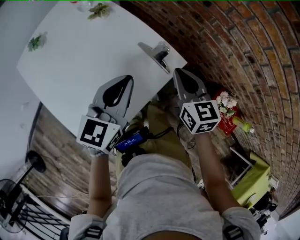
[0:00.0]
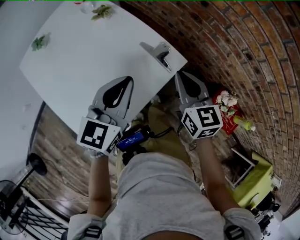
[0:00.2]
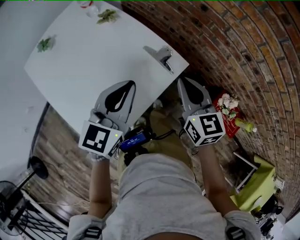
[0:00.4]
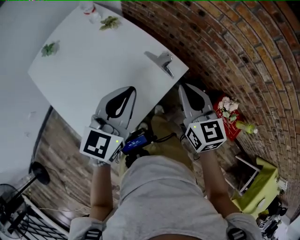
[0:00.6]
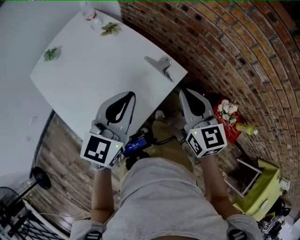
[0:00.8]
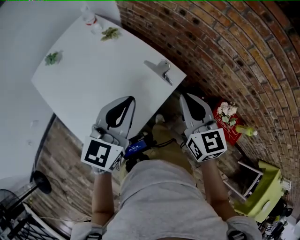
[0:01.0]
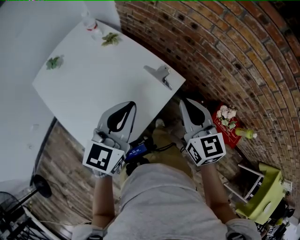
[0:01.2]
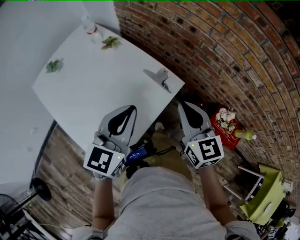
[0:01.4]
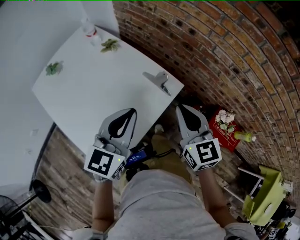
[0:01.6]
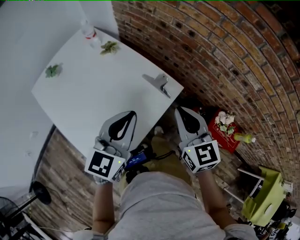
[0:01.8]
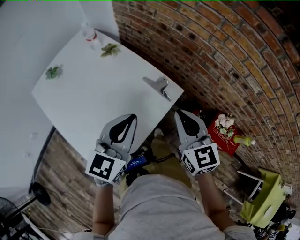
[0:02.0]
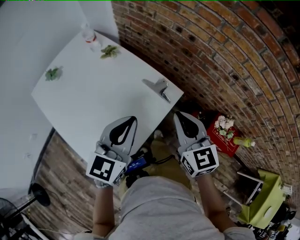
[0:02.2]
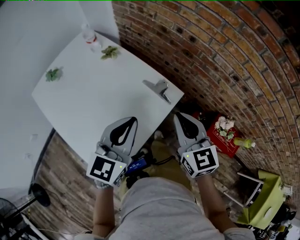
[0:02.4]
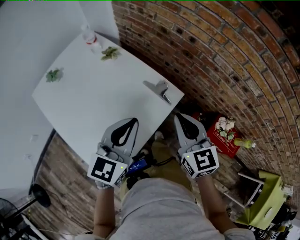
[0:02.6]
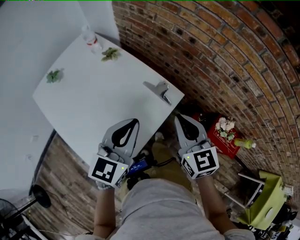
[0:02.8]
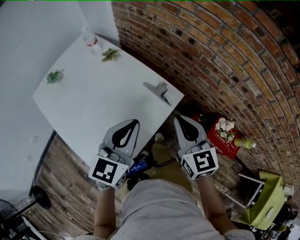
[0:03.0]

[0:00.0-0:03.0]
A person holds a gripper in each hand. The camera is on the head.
0:00.0 to 0:01.6: The two grippers go roughly 10 cm backward and upward.
0:01.6 to 0:03.0: Neither gripper changes place.

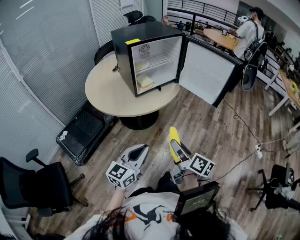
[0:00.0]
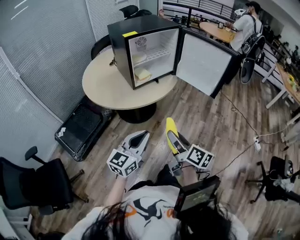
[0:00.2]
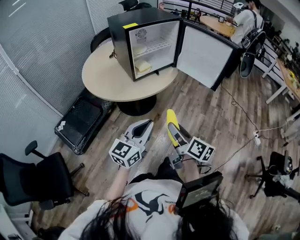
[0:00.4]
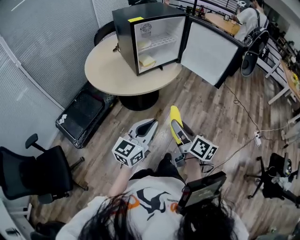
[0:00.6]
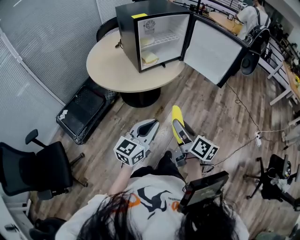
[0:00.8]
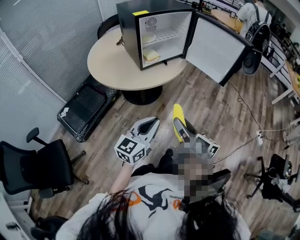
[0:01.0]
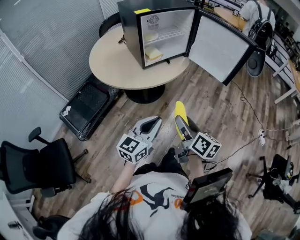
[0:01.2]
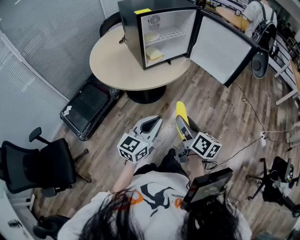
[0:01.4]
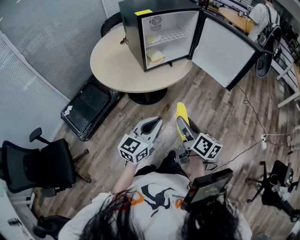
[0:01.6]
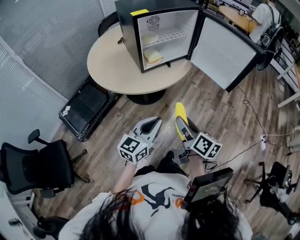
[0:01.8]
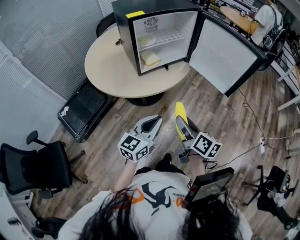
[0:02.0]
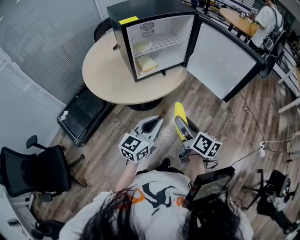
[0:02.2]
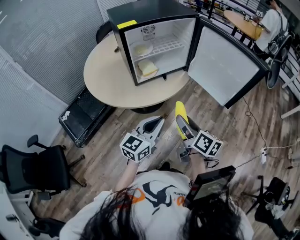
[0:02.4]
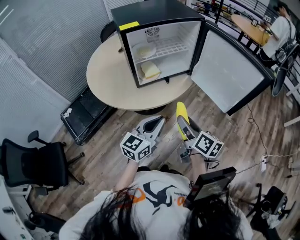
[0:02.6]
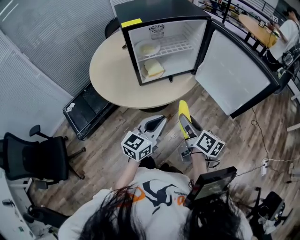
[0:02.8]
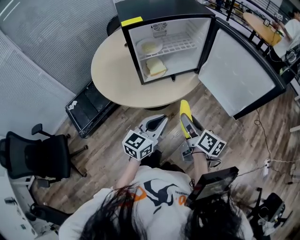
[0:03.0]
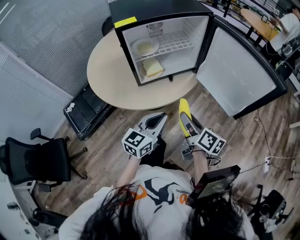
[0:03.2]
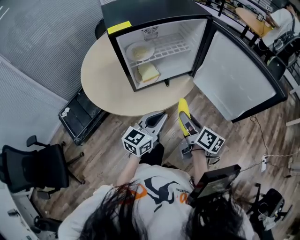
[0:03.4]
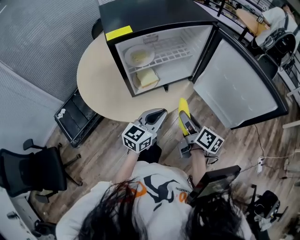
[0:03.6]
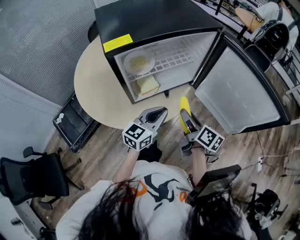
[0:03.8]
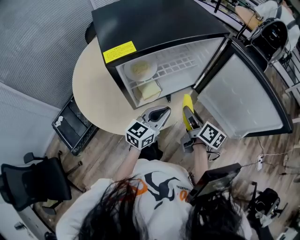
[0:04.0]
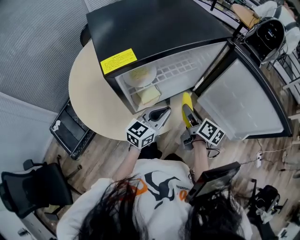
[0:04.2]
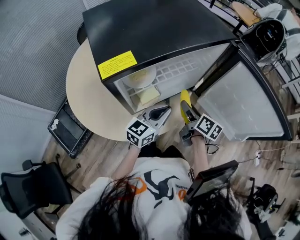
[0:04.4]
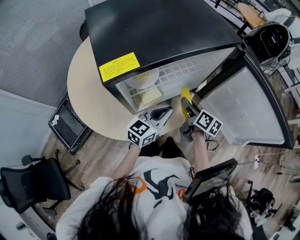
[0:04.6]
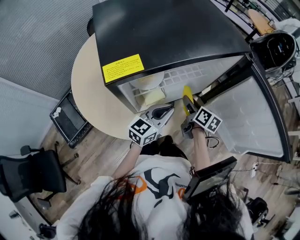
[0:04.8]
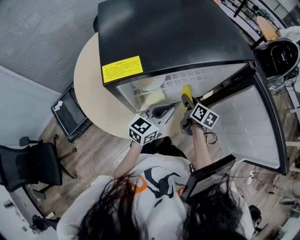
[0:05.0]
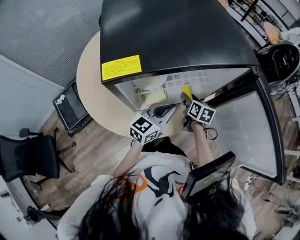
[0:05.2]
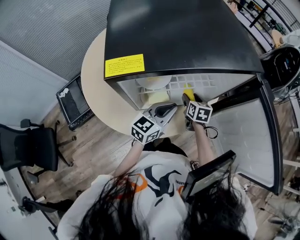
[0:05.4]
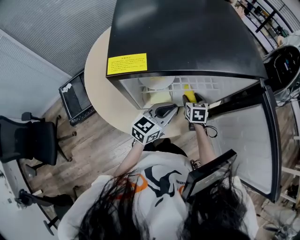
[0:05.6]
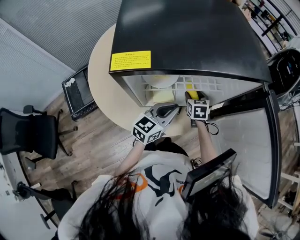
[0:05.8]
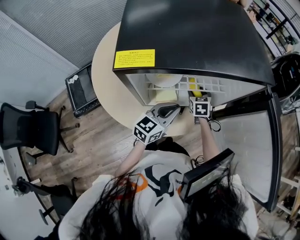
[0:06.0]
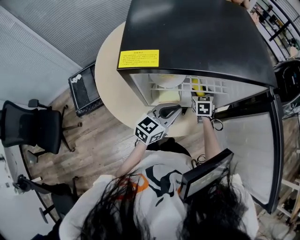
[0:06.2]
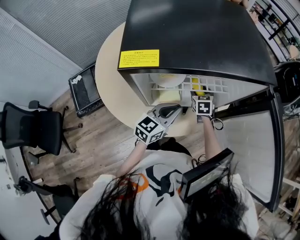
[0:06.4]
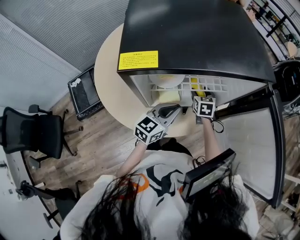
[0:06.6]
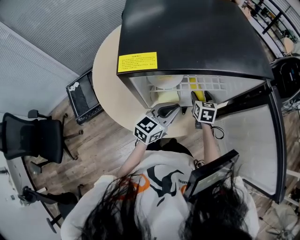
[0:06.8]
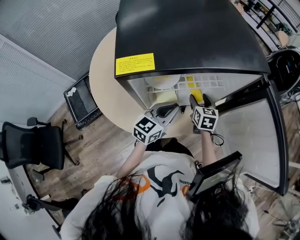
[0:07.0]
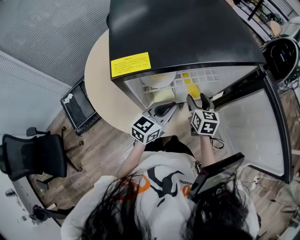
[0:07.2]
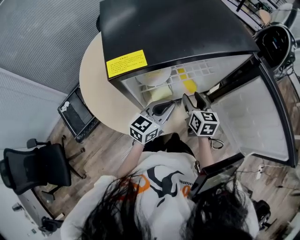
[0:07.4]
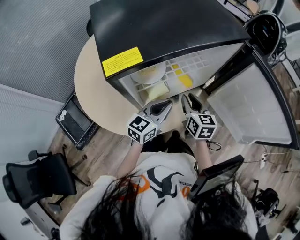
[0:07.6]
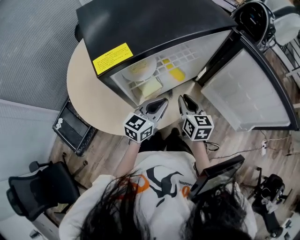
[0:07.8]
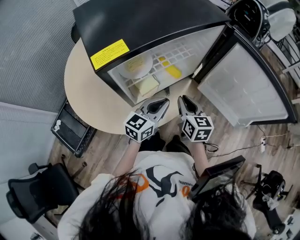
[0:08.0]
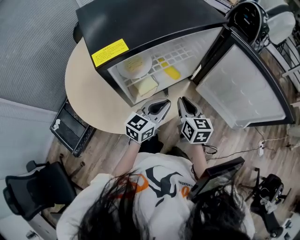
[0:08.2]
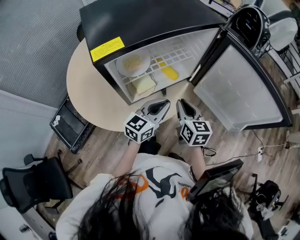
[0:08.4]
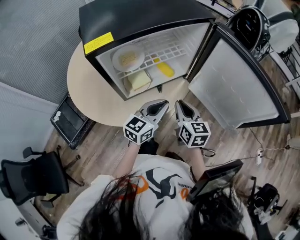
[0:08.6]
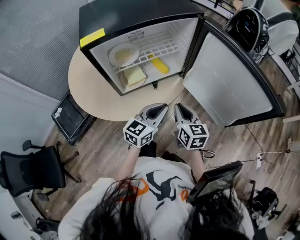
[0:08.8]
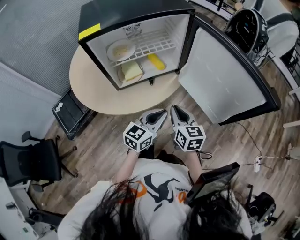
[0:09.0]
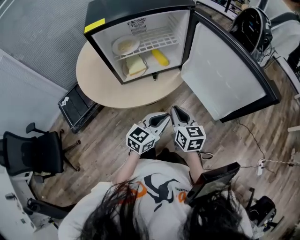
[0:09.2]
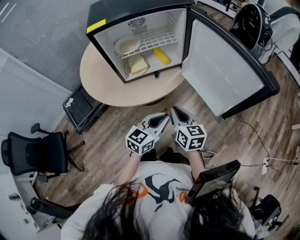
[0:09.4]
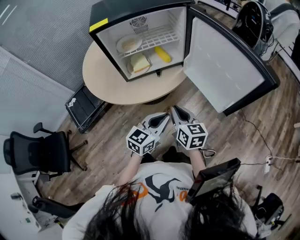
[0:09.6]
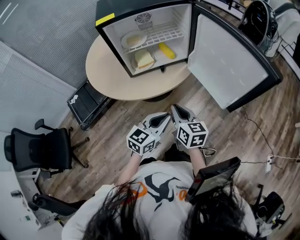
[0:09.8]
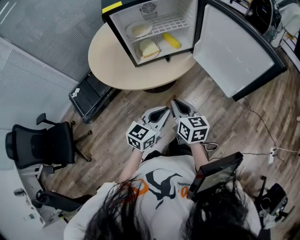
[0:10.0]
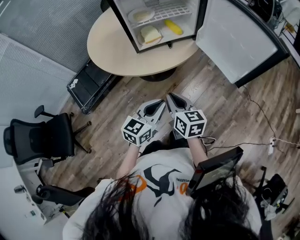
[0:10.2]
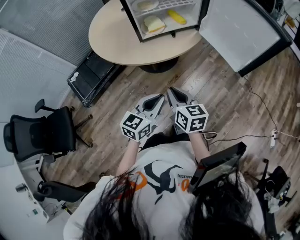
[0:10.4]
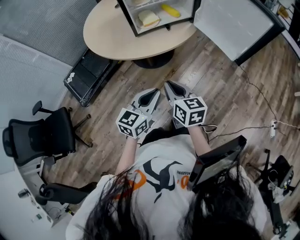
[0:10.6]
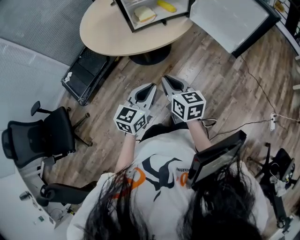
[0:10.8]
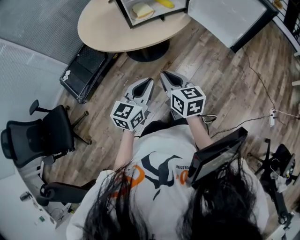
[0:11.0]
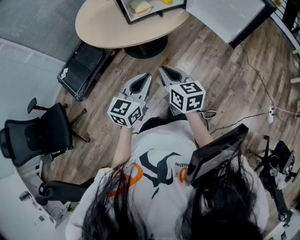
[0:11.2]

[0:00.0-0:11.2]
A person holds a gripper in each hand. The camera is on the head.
0:00.0 to 0:01.6: The left gripper goes about 5 cm forward. The right gripper changes place by roughly 5 cm.
0:01.6 to 0:03.2: Both grippers travel together forward, approximately 20 cm.
0:03.2 to 0:04.8: The grippers both shift forward by some 25 cm.
0:04.8 to 0:06.4: The right gripper moves forward, downward and to the left, roughly 15 cm, and rotates around the line of its fingers by some 60 degrees, counterclockwise from behind.
0:06.4 to 0:08.0: The left gripper is displaced backward by roughly 5 cm, and rotates roughly 20 degrees, while the right gripper is displaced backward and upward by about 25 cm, changes its angle by about 40 degrees, and closes.
0:08.0 to 0:09.6: The grippers both shift backward and to the right by roughly 20 cm. The right gripper turns by approximately 20 degrees.
0:09.6 to 0:11.2: Both grippers travel together backward and to the left, about 20 cm.

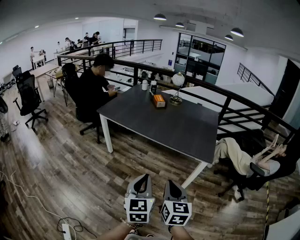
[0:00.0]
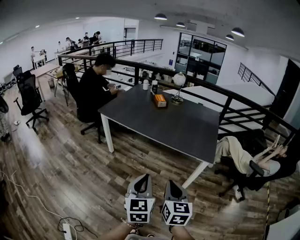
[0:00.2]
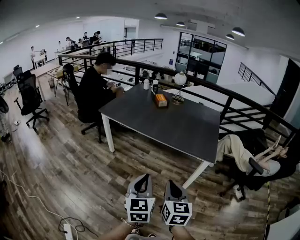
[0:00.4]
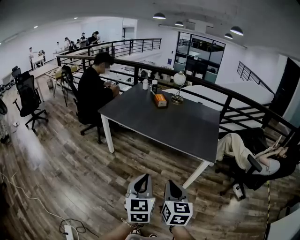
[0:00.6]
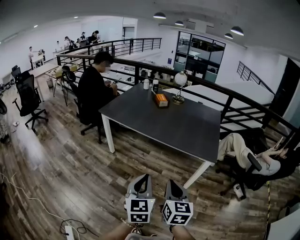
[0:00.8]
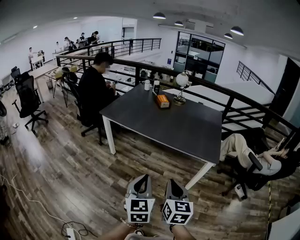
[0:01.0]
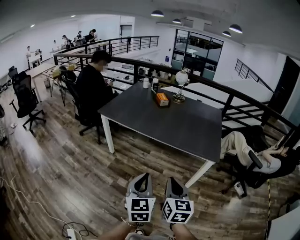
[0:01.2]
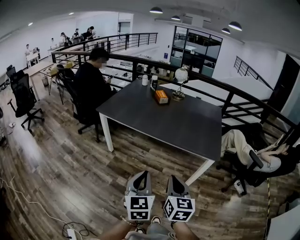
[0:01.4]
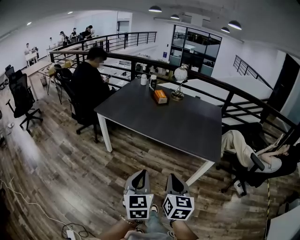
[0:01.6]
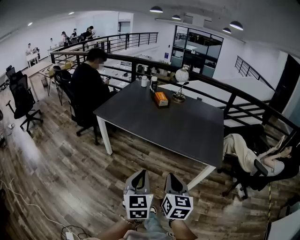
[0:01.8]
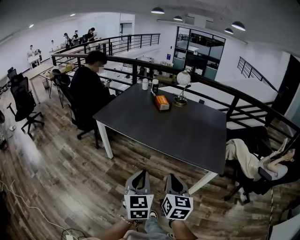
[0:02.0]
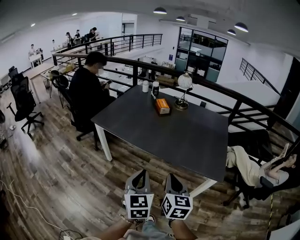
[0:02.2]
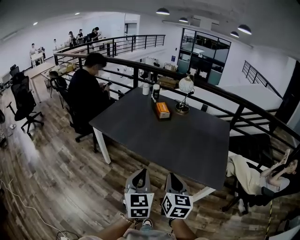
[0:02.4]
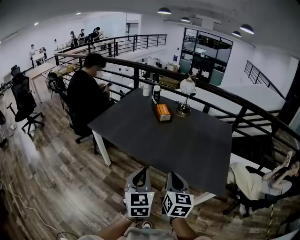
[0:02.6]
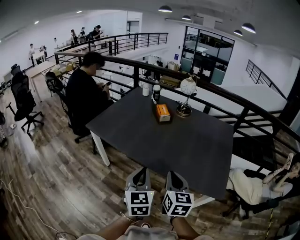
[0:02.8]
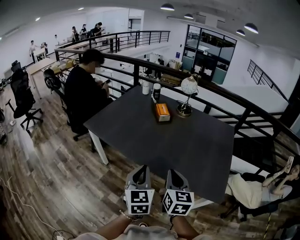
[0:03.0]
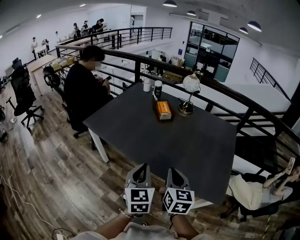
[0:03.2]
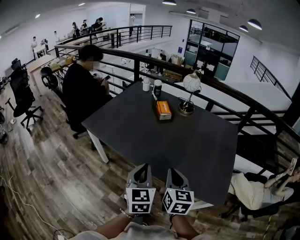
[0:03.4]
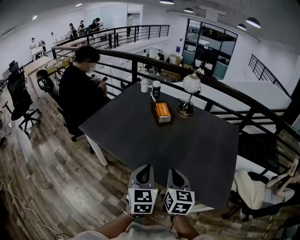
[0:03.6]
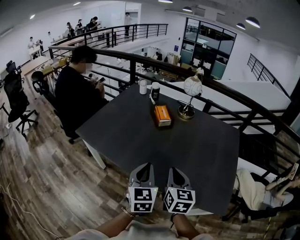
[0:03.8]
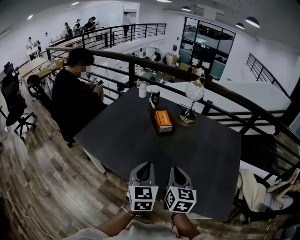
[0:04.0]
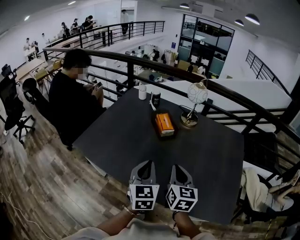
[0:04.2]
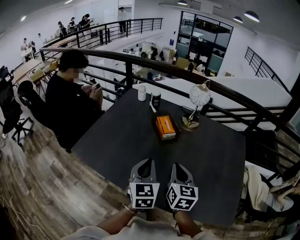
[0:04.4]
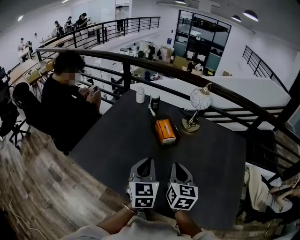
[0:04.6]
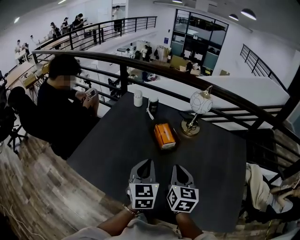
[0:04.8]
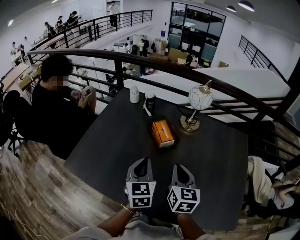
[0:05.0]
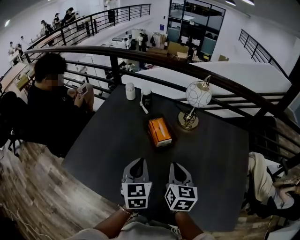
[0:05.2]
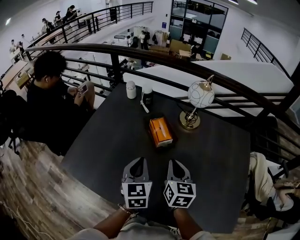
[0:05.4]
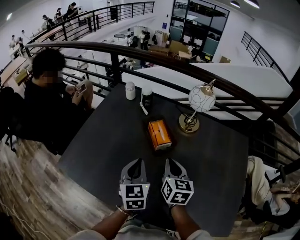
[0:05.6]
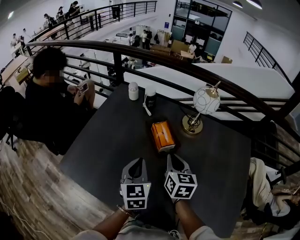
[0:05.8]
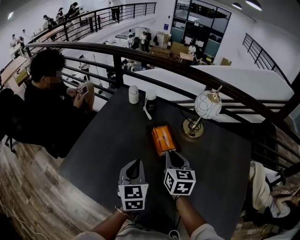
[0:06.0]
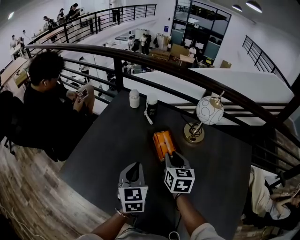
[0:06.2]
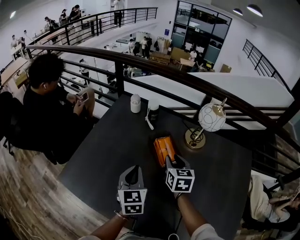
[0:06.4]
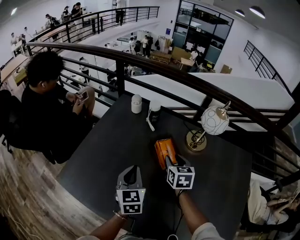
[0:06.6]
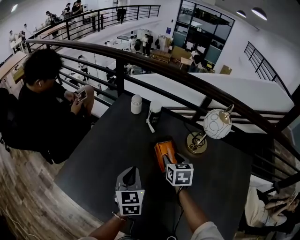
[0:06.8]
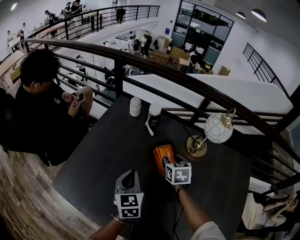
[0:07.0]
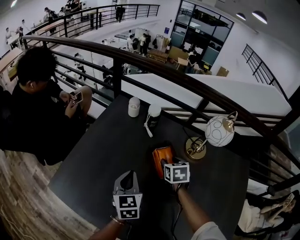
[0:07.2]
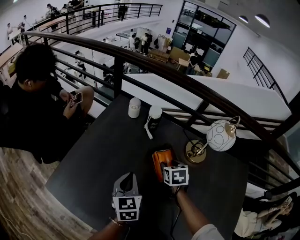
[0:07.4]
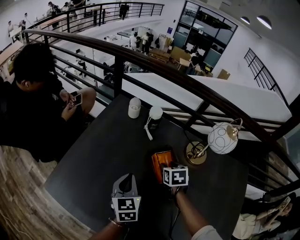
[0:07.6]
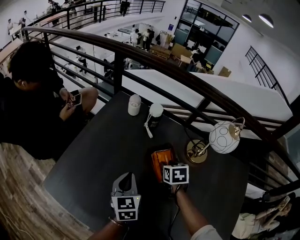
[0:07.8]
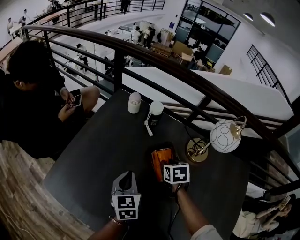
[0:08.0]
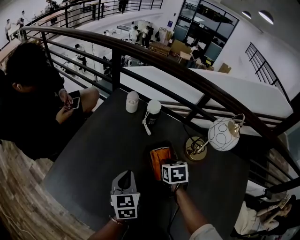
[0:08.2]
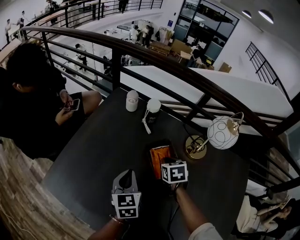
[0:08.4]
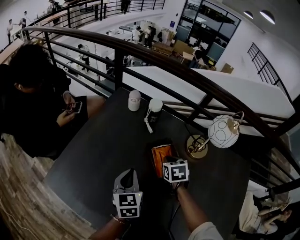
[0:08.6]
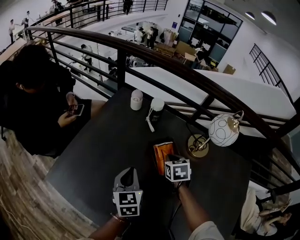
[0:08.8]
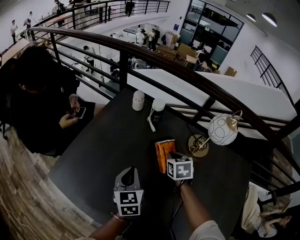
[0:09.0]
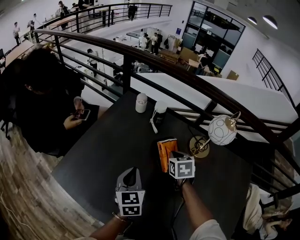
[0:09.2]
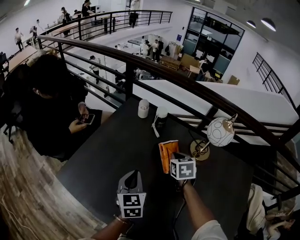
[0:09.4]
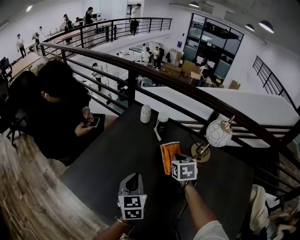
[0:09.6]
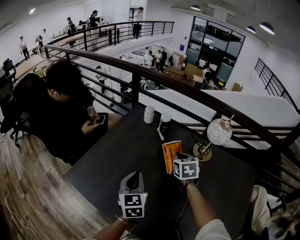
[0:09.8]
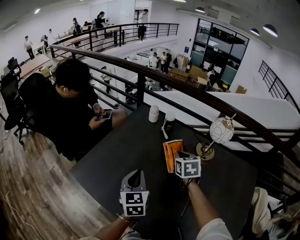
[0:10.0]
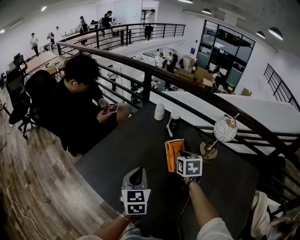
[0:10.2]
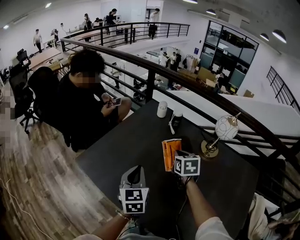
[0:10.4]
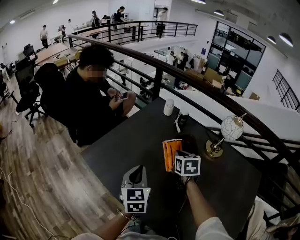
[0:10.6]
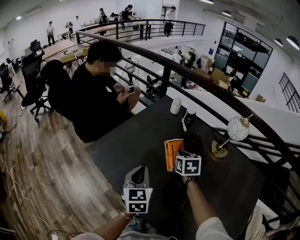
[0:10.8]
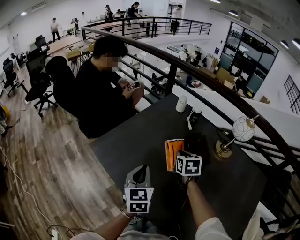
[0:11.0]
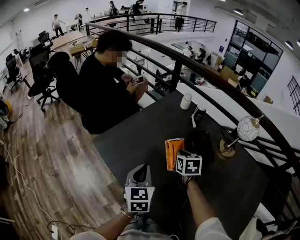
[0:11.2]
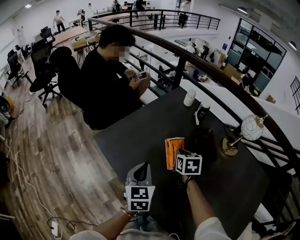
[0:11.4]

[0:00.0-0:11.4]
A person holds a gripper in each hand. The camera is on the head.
0:00.0 to 0:01.4: The right gripper is displaced forward by approximately 5 cm. The left gripper goes roughly 10 cm to the left and forward.
0:01.4 to 0:02.8: Both grippers move forward, approximately 30 cm.
0:02.8 to 0:04.2: Both grippers move forward, roughly 25 cm.
0:04.2 to 0:05.6: Both grippers move forward, approximately 20 cm.
0:05.6 to 0:07.2: The left gripper goes roughly 15 cm forward and to the left; the right gripper shifts some 20 cm forward and downward, turns by roughly 30 degrees, and opens up.
0:07.2 to 0:08.6: The right gripper closes its fingers.
0:08.6 to 0:10.0: The left gripper travels backward and upward by approximately 15 cm; the right gripper moves upward, some 15 cm.
0:10.0 to 0:11.4: The left gripper is displaced backward and to the left by approximately 10 cm. The right gripper travels to the left, downward and backward by about 15 cm.
